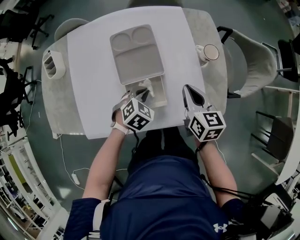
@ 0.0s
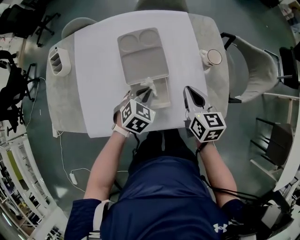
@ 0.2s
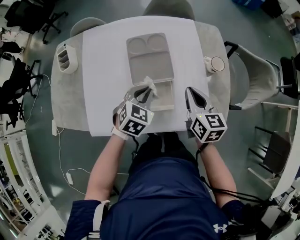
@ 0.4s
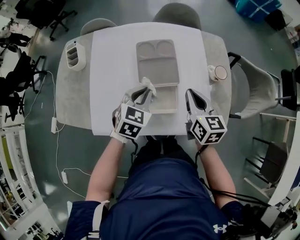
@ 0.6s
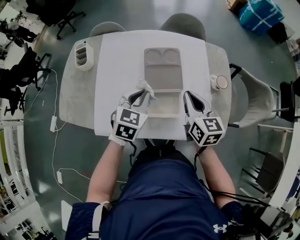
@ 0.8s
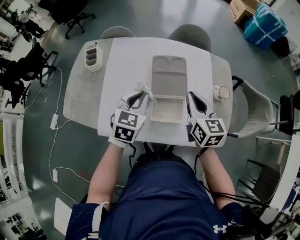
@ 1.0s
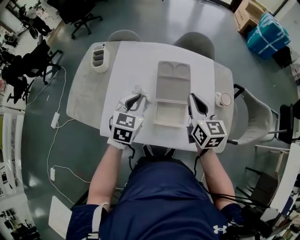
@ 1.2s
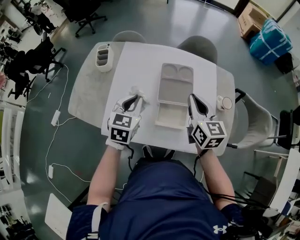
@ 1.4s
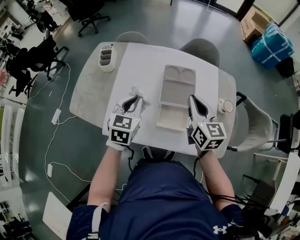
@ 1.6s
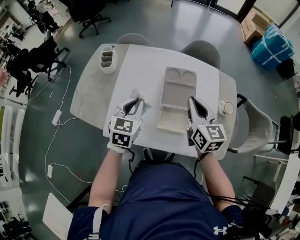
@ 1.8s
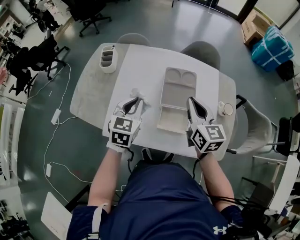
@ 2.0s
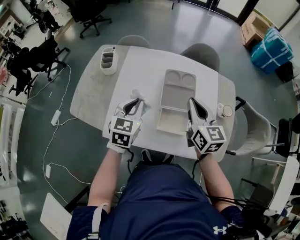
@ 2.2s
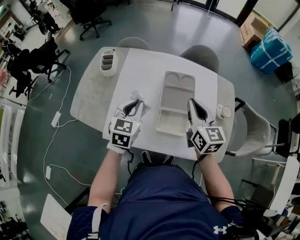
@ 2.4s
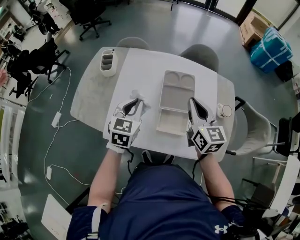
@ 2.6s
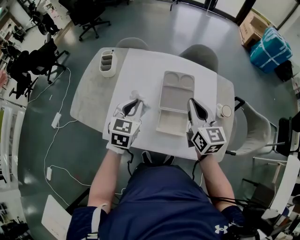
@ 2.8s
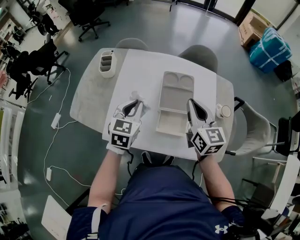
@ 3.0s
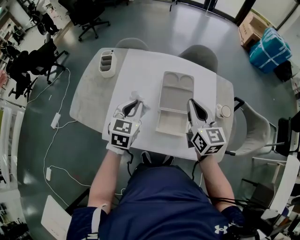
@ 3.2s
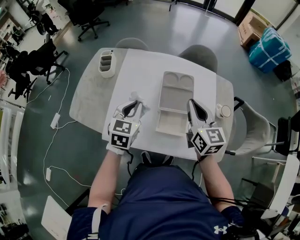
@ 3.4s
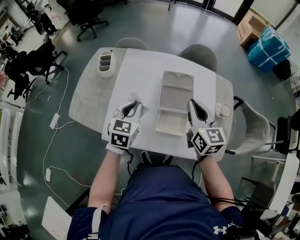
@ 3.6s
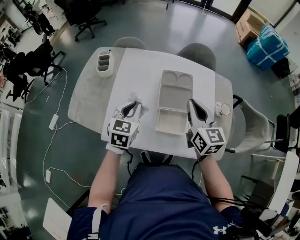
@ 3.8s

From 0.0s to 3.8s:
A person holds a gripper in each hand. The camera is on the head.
From 0.0s to 1.2s: The grippers both shift upward and to the left by about 20 cm. The right gripper swivels approximately 20 degrees. The left gripper turns by some 40 degrees.
From 1.2s to 2.6s: The right gripper moves roughly 5 cm. The left gripper changes place by some 5 cm.
From 2.6s to 3.8s: The grippers stay close to where they were, moving slightly.

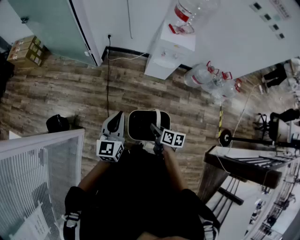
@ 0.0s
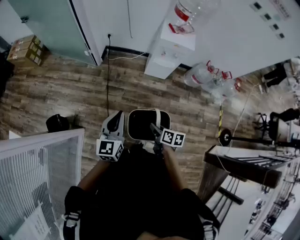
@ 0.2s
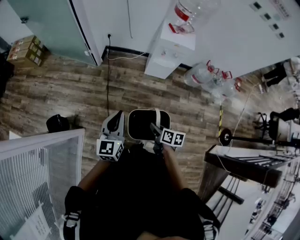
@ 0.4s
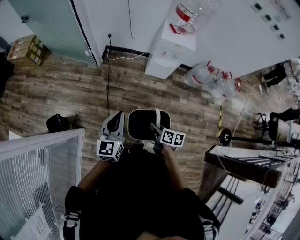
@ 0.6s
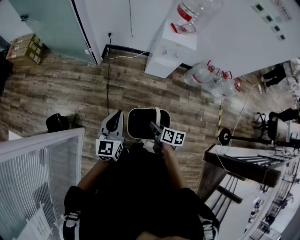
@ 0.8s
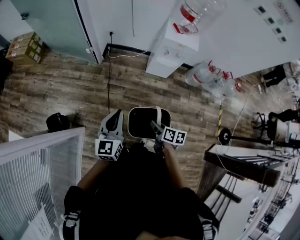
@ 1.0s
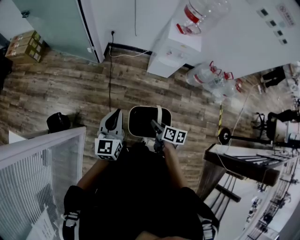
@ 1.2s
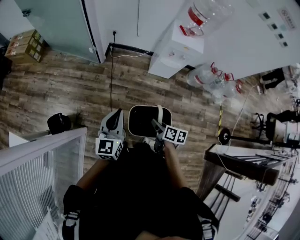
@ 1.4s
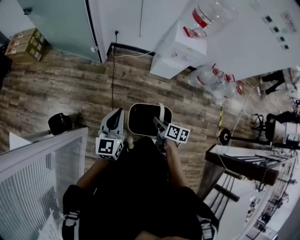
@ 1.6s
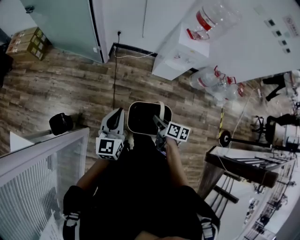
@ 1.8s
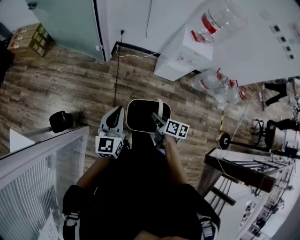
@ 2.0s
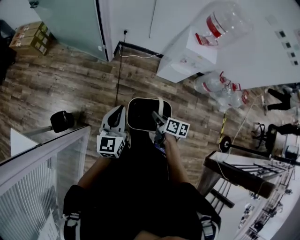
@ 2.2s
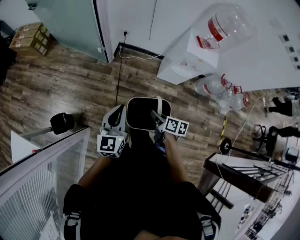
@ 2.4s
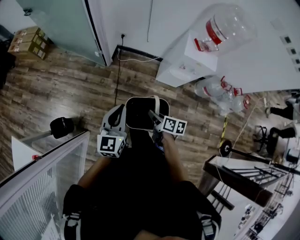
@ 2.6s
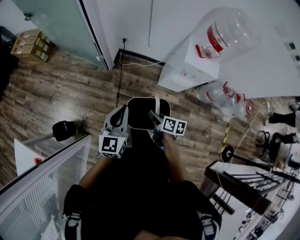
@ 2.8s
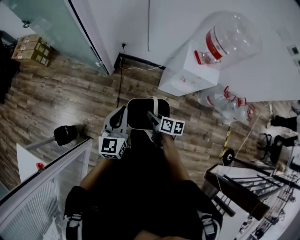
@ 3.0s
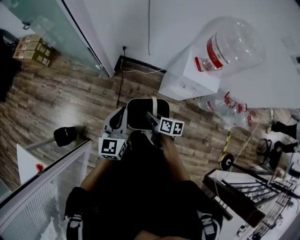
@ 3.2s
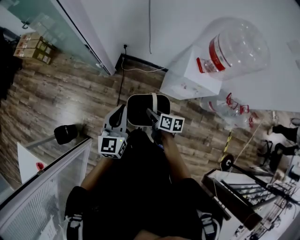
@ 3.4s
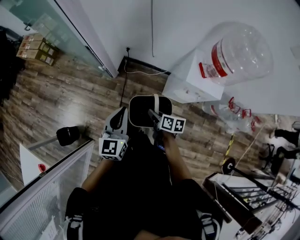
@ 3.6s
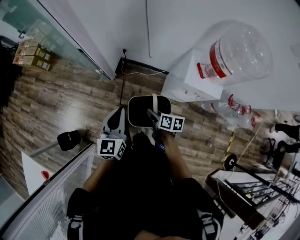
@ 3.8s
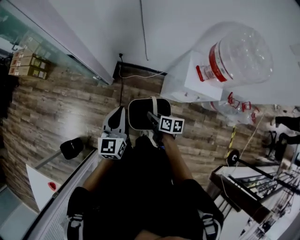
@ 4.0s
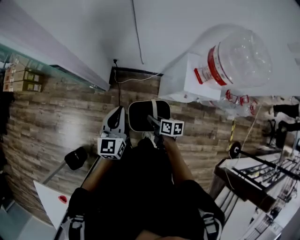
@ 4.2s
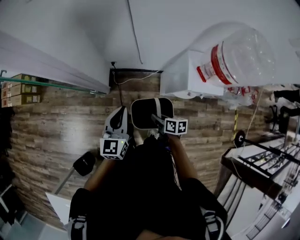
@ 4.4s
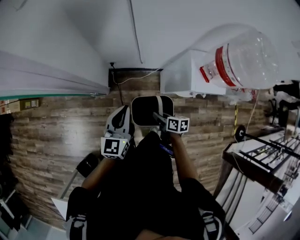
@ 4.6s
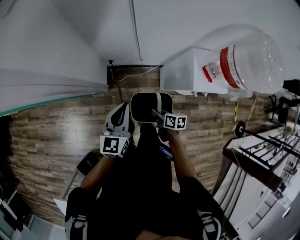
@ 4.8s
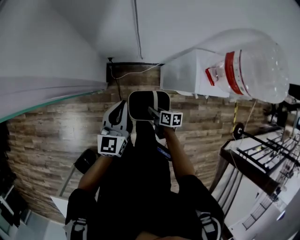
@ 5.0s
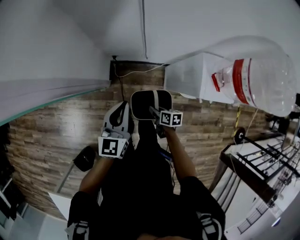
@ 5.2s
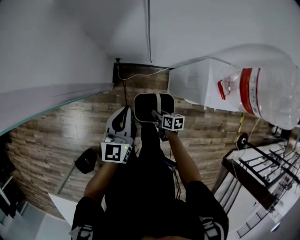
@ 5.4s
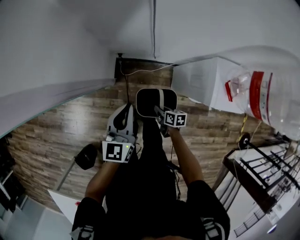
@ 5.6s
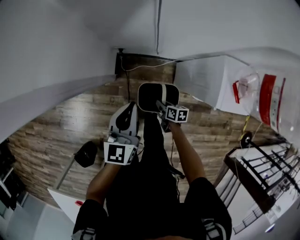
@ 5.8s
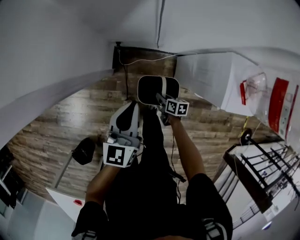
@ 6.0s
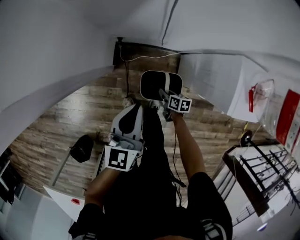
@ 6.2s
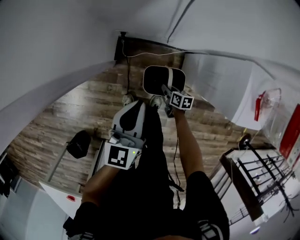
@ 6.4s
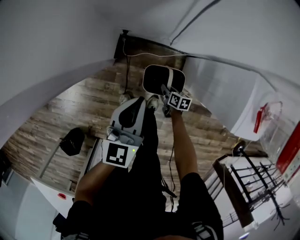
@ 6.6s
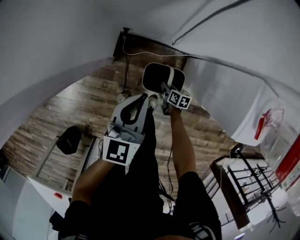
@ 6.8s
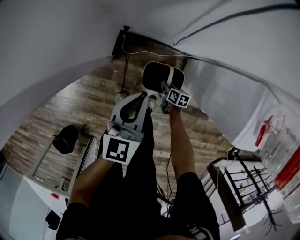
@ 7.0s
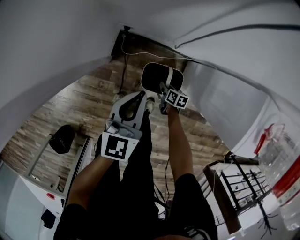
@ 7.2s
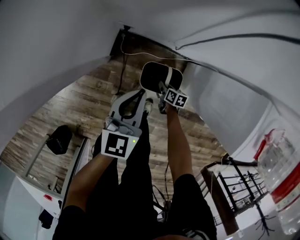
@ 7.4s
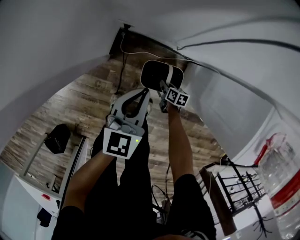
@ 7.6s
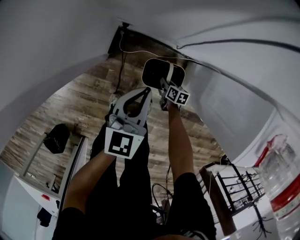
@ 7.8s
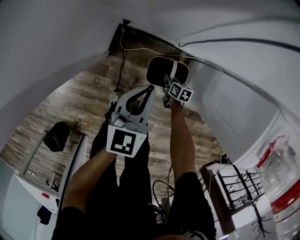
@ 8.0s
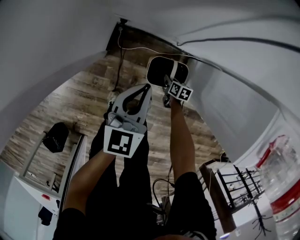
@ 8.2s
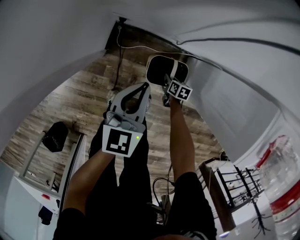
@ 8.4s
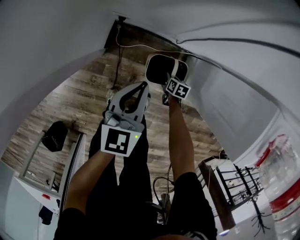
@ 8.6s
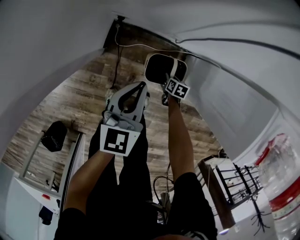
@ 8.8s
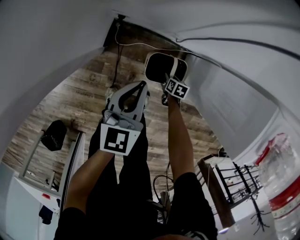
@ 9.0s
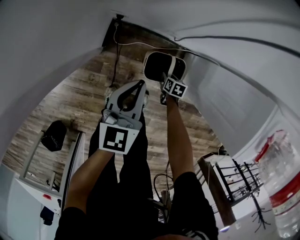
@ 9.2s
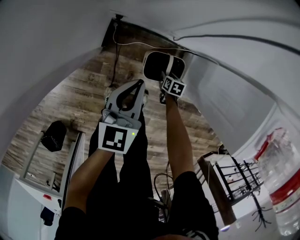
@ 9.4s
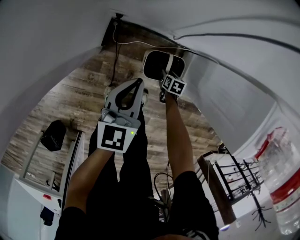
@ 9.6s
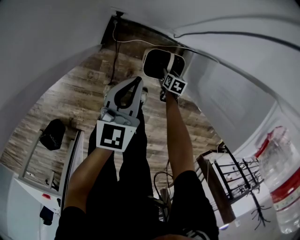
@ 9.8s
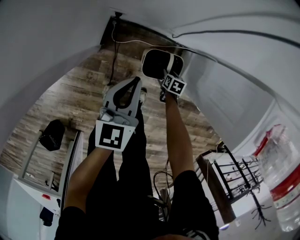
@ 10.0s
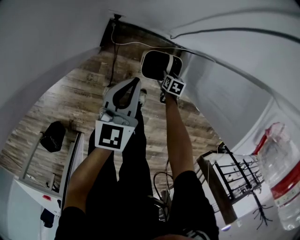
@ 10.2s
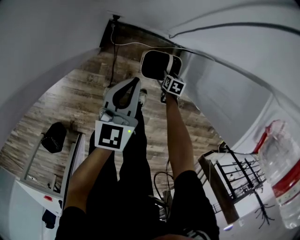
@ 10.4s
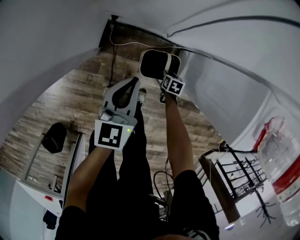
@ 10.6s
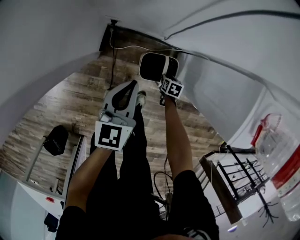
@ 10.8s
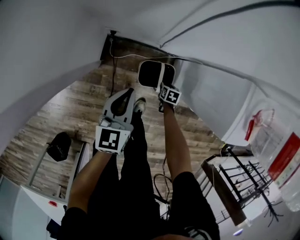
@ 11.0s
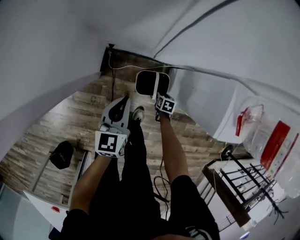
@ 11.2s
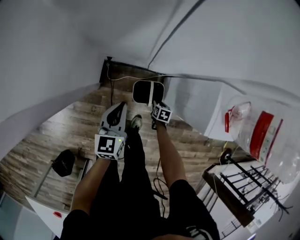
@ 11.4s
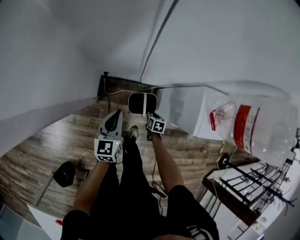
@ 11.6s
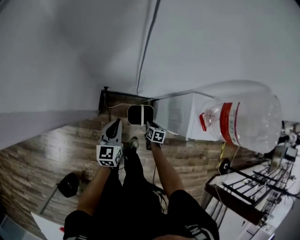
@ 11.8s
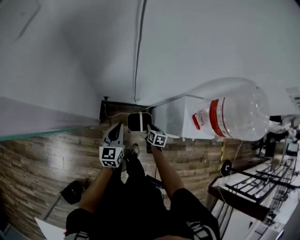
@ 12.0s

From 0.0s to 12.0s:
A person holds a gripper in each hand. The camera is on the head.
From 0.0s to 1.6s: The two grippers go approximately 10 cm to the left and forward.
From 1.6s to 3.0s: The right gripper is displaced forward by approximately 25 cm; the left gripper heads forward and to the right, covering some 25 cm.
From 3.0s to 4.4s: The two grippers go approximately 25 cm forward.
From 4.4s to 6.0s: The left gripper goes roughly 20 cm downward and forward. Meanwhile the right gripper heads downward and forward, covering roughly 30 cm.
From 6.0s to 7.6s: The two grippers go roughly 20 cm downward.
From 7.6s to 9.0s: The right gripper heads to the right, covering roughly 5 cm, and opens up.
From 9.0s to 10.4s: The grippers move only a little.
From 10.4s to 12.0s: The left gripper moves upward, some 25 cm. The right gripper shifts approximately 40 cm upward, rotates roughly 20 degrees, and closes.

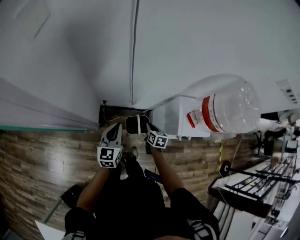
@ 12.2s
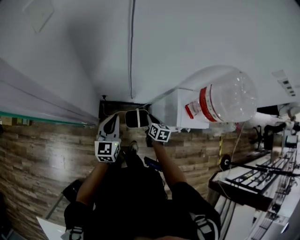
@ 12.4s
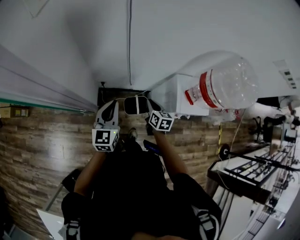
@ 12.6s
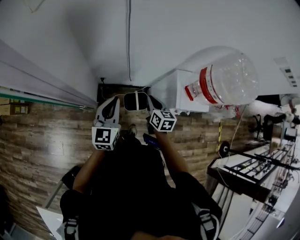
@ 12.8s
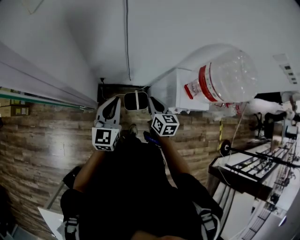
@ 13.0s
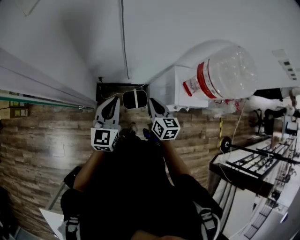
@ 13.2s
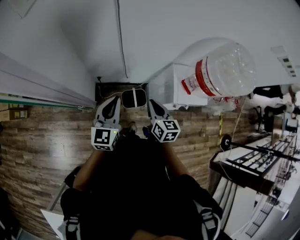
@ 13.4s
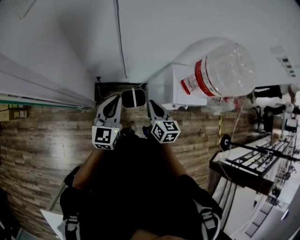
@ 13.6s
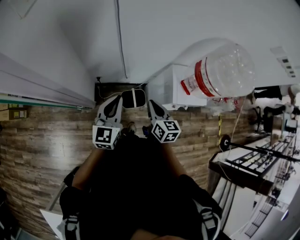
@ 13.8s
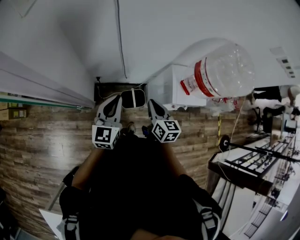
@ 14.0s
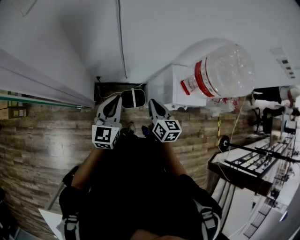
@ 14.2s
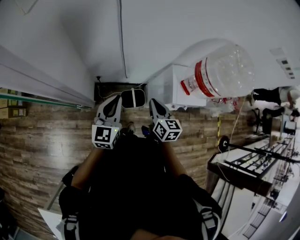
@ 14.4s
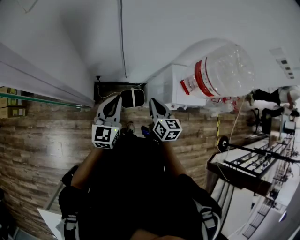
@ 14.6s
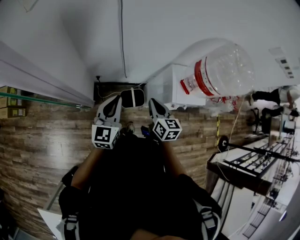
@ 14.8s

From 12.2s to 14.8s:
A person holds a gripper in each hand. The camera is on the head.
From 12.2s to 13.4s: The left gripper shifts roughly 10 cm upward. The right gripper travels upward by roughly 20 cm, and changes its angle by approximately 20 degrees.
From 13.4s to 14.8s: Both grippers stay about where they are.

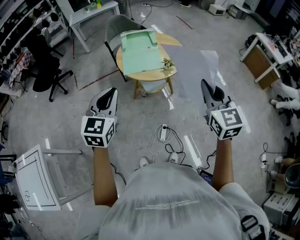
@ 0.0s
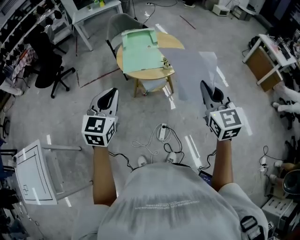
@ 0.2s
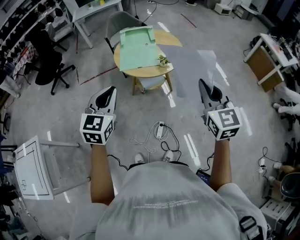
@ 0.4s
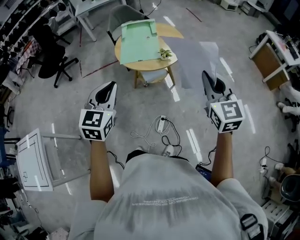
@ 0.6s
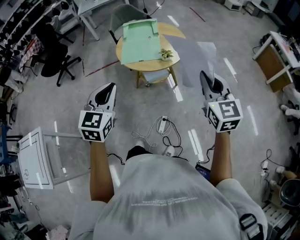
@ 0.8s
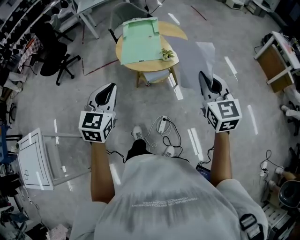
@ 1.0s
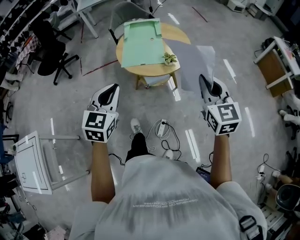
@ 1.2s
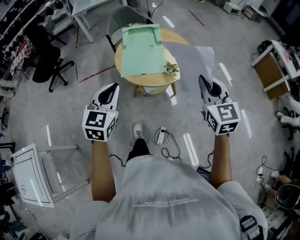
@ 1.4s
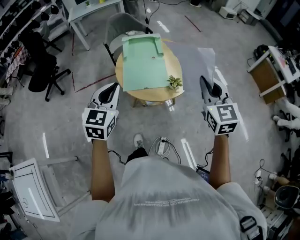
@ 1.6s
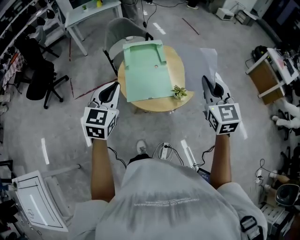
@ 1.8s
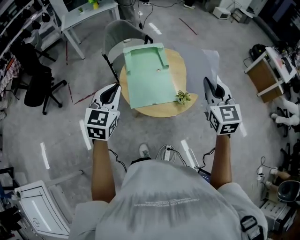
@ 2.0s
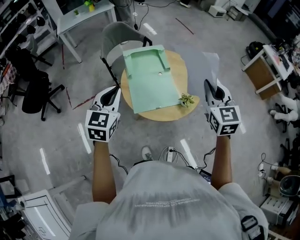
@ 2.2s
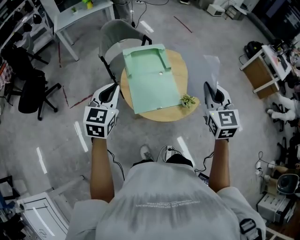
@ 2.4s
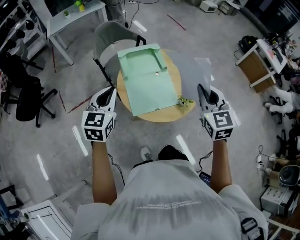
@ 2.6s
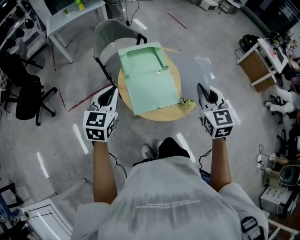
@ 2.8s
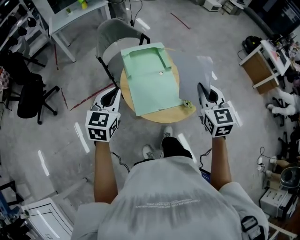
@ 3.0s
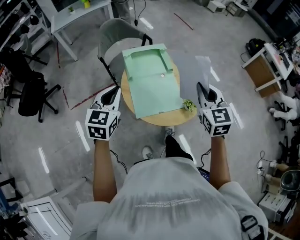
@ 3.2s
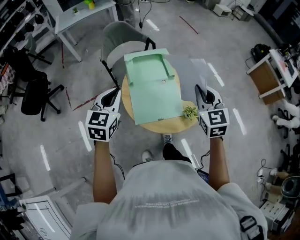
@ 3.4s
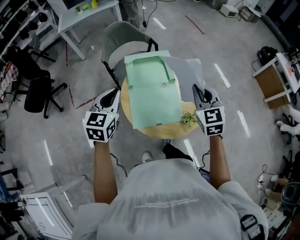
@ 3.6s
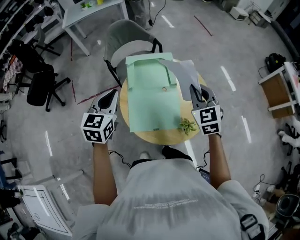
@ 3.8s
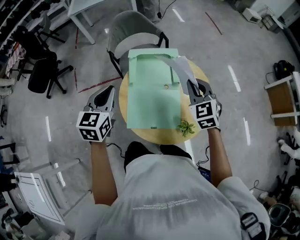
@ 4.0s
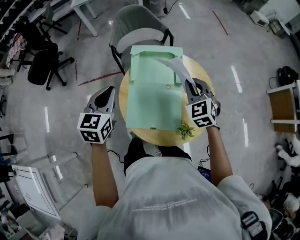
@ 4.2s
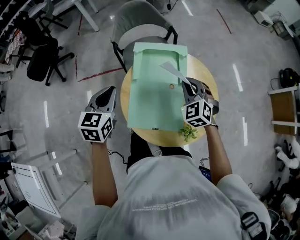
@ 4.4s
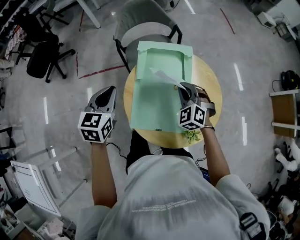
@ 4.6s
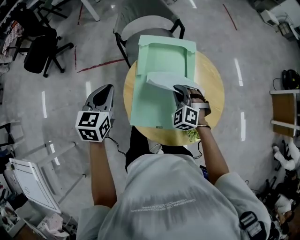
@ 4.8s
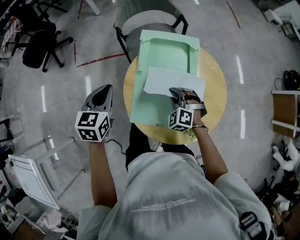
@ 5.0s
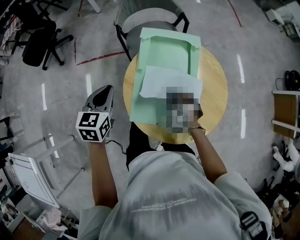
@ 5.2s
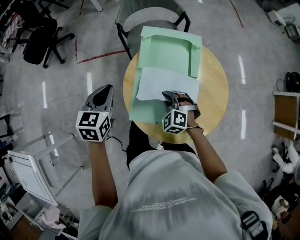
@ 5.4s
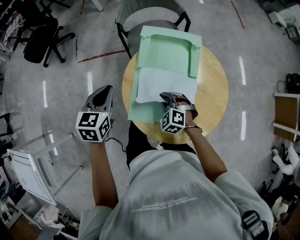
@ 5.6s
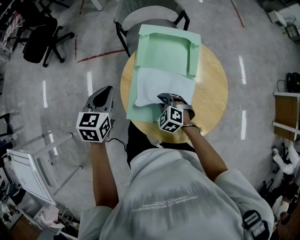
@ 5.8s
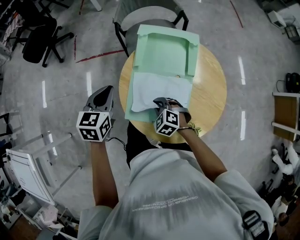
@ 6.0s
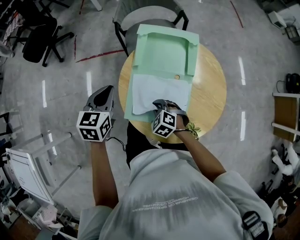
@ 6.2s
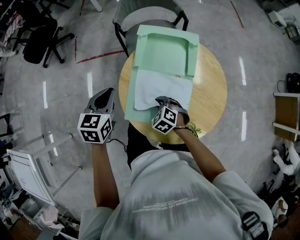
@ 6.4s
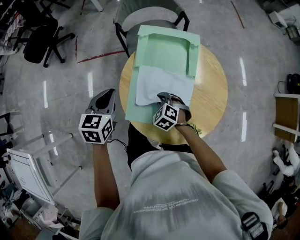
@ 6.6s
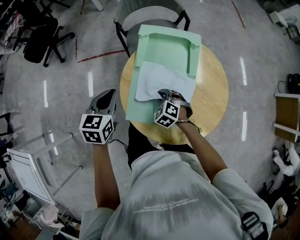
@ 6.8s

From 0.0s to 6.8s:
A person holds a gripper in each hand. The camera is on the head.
From 0.0s to 1.4s: The left gripper shifts about 15 cm forward and downward. The right gripper travels forward by approximately 15 cm.
From 1.4s to 2.8s: The grippers both shift forward and to the left by approximately 30 cm.
From 2.8s to 4.0s: The left gripper moves forward, approximately 10 cm. The right gripper goes about 25 cm forward and downward, and rotates approximately 30 degrees.
From 4.0s to 5.4s: The left gripper travels downward and to the left by about 15 cm. The right gripper moves downward and to the left, roughly 30 cm, and turns by some 40 degrees.
From 5.4s to 6.8s: The right gripper is displaced downward by roughly 5 cm.
